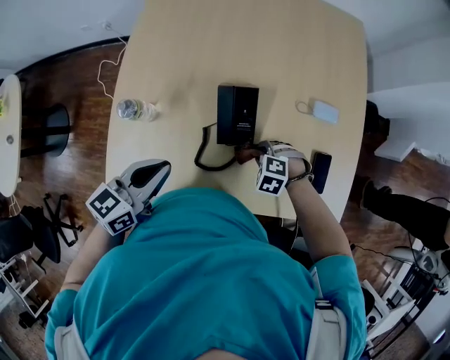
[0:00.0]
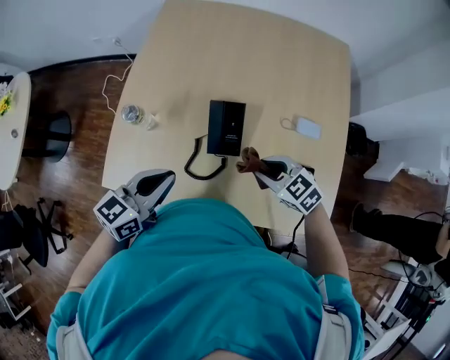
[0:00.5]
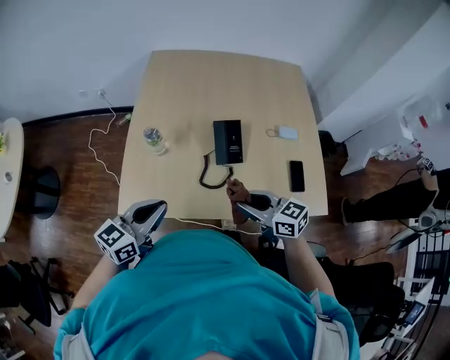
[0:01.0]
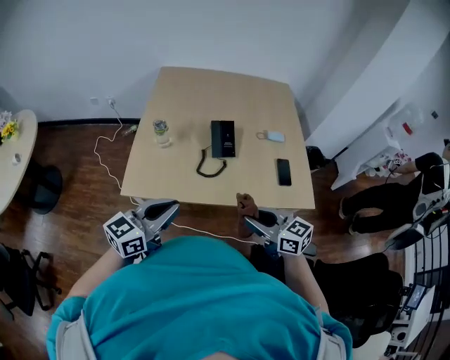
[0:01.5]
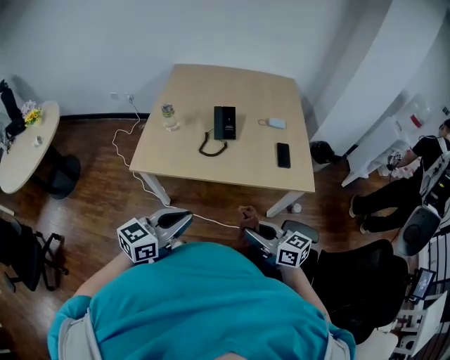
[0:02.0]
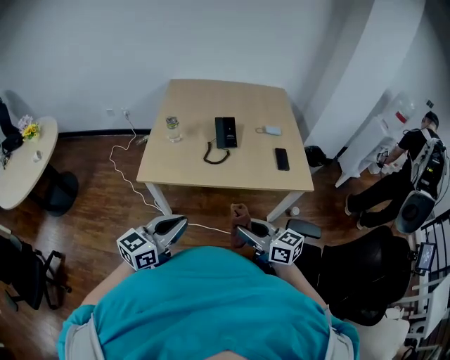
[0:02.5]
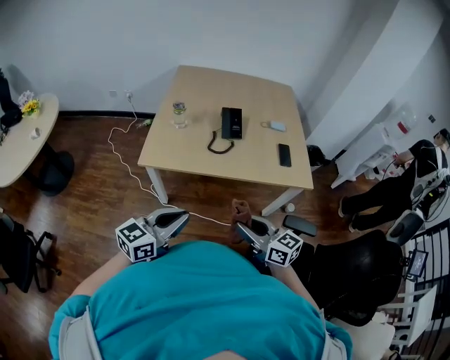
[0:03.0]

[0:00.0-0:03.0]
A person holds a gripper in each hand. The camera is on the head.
0:00.0 to 0:01.5: The right gripper moves some 40 cm, and tilts its fingers some 60 degrees upward; the left gripper changes place by approximately 30 cm, and turns by roughly 20 degrees.
0:01.5 to 0:03.0: Both grippers travel together backward, about 20 cm.

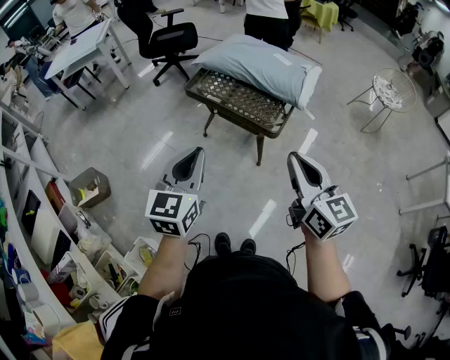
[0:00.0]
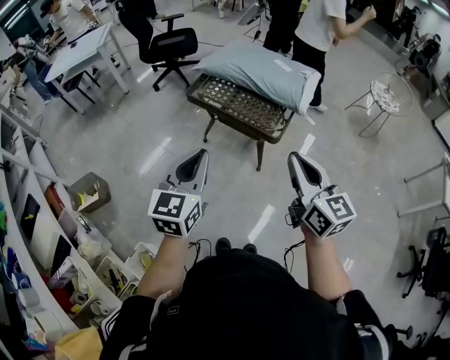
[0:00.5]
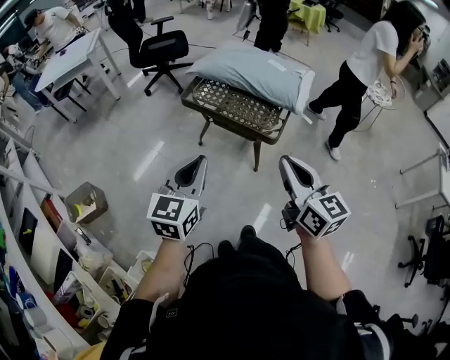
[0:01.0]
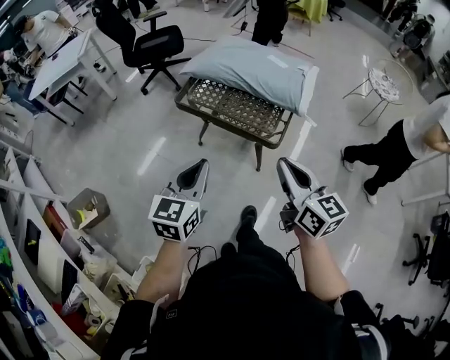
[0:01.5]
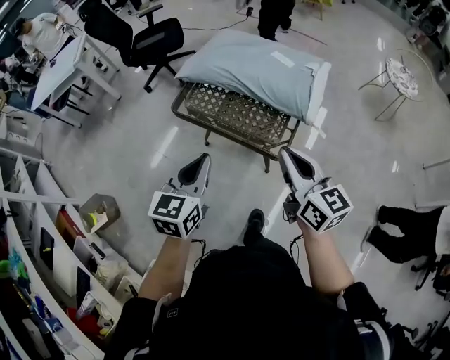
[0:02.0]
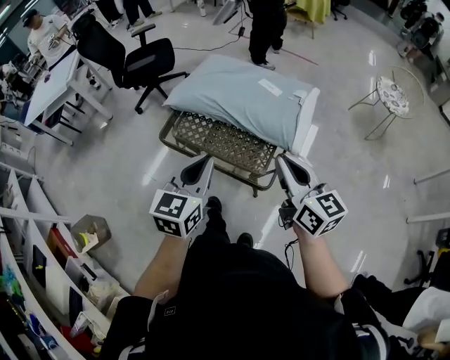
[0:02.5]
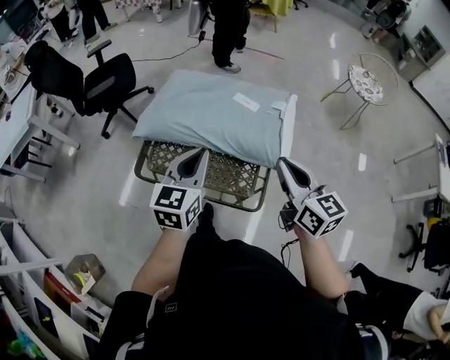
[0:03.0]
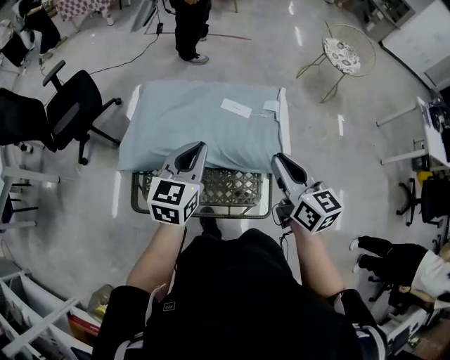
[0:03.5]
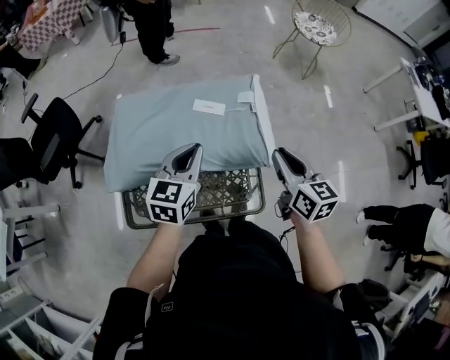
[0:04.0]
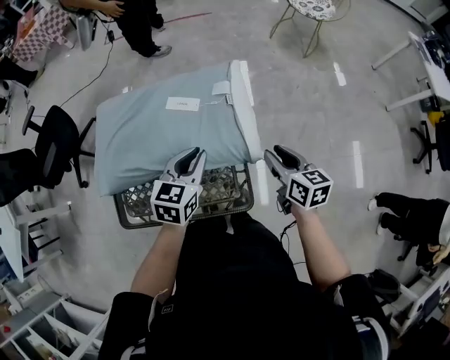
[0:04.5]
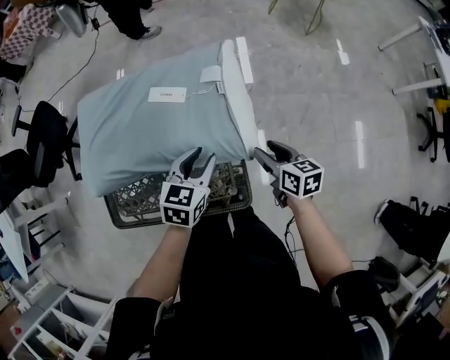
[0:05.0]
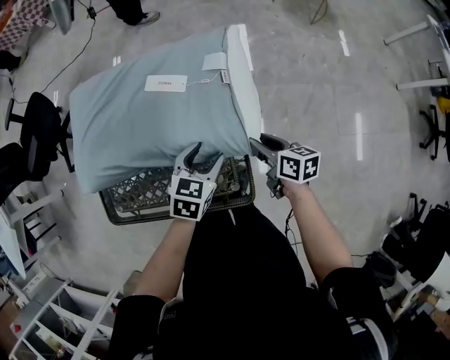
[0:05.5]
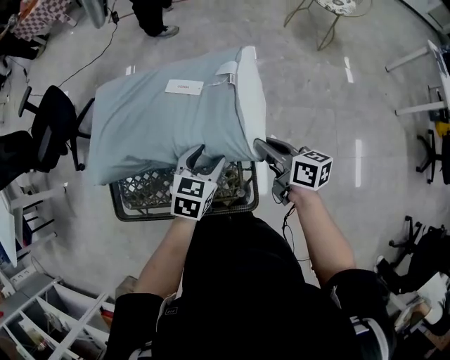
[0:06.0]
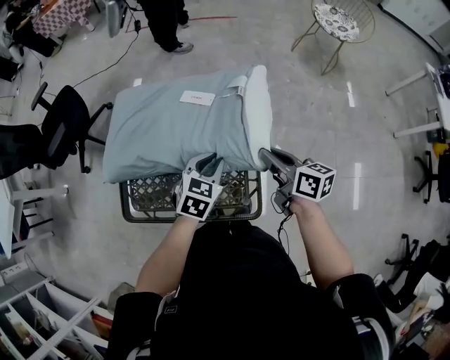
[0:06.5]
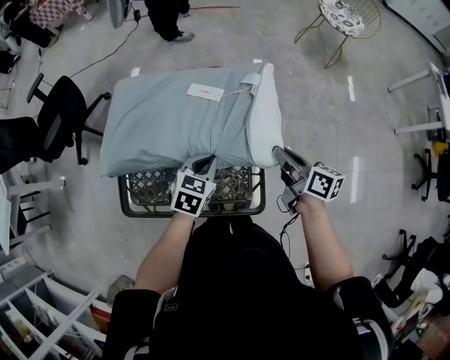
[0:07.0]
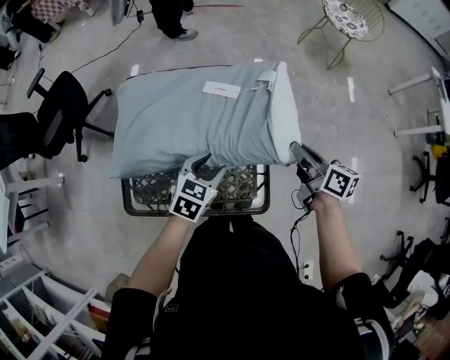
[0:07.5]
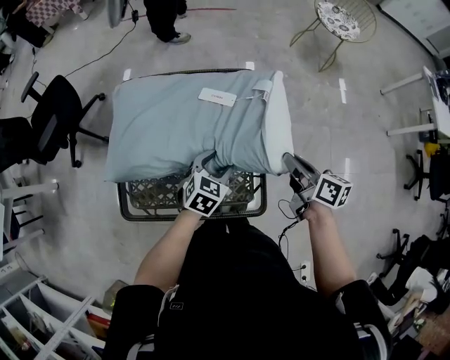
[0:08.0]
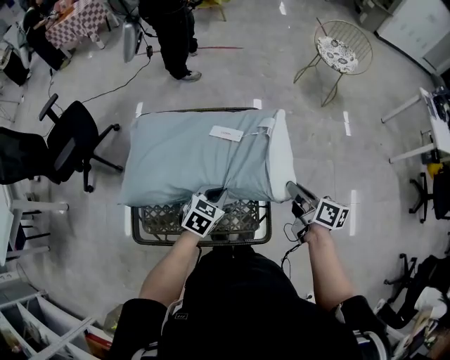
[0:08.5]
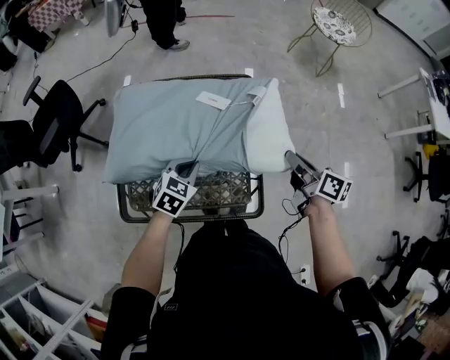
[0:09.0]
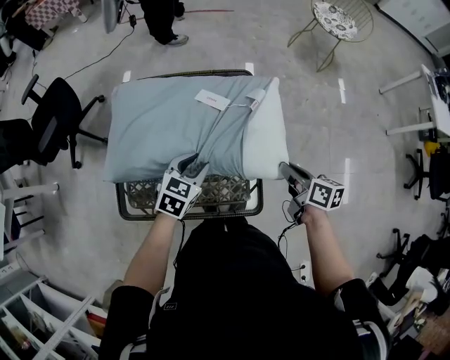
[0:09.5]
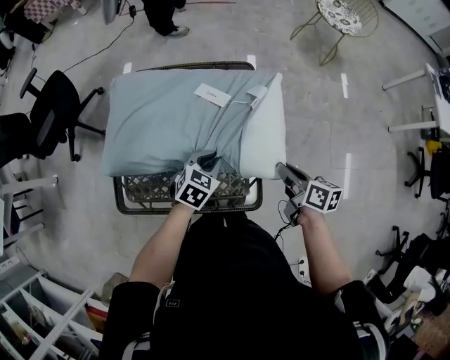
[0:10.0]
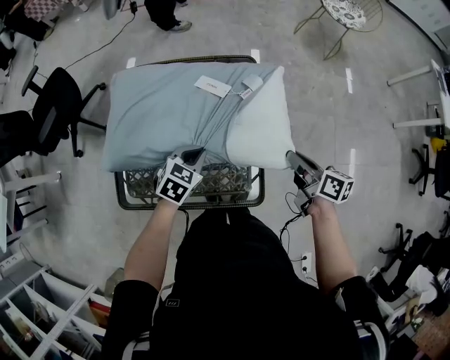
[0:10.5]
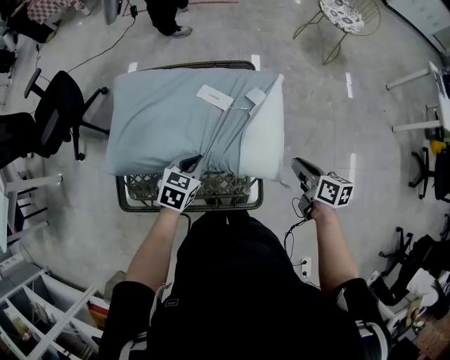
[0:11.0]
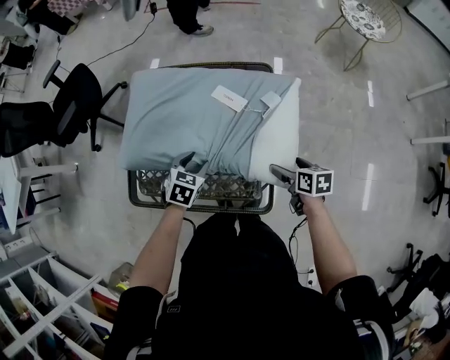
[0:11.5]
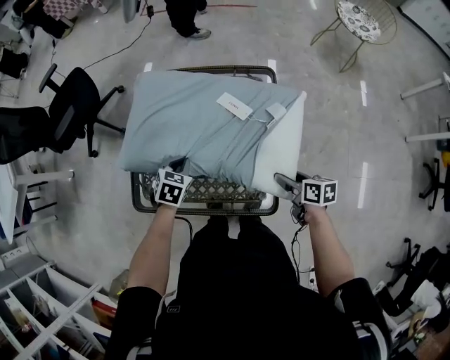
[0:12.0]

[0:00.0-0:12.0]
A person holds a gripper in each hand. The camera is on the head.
0:00.0 to 0:02.0: The two grippers go approximately 25 cm forward.
0:02.0 to 0:04.0: The left gripper moves approximately 40 cm, and rotates about 40 degrees, while the right gripper ends up roughly 30 cm from where it was, and turns by some 40 degrees.
0:04.0 to 0:06.0: The left gripper moves downward and to the right, about 20 cm, changes its angle by some 20 degrees, and opens. Meanwhile the right gripper is displaced downward by about 15 cm, and rotates some 30 degrees.
0:06.0 to 0:08.0: The left gripper closes, then reopens.
0:08.0 to 0:10.0: The right gripper shifts by about 5 cm. The left gripper travels to the left and back again, roughly 5 cm each way, and closes its fingers.
0:10.0 to 0:12.0: The right gripper moves downward, some 10 cm, and opens up. The left gripper moves to the left, about 15 cm, and opens, then closes once more.

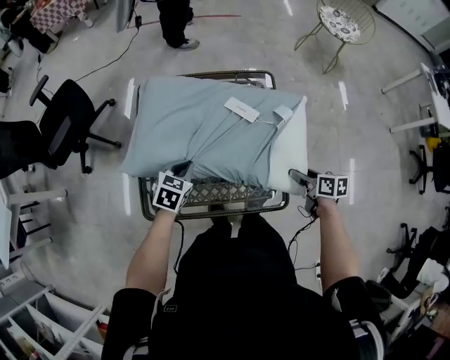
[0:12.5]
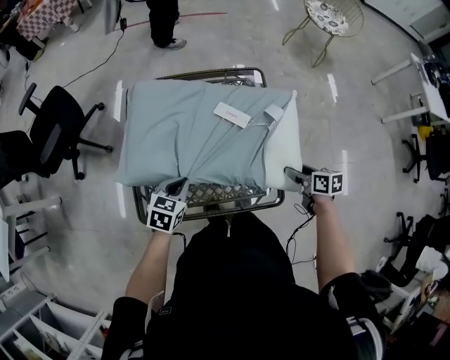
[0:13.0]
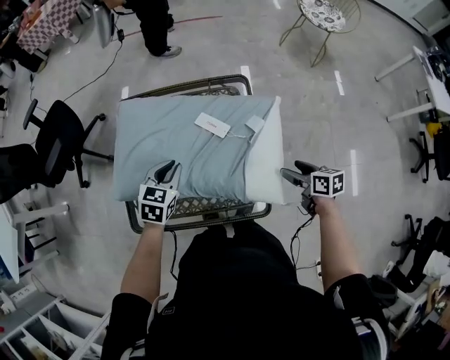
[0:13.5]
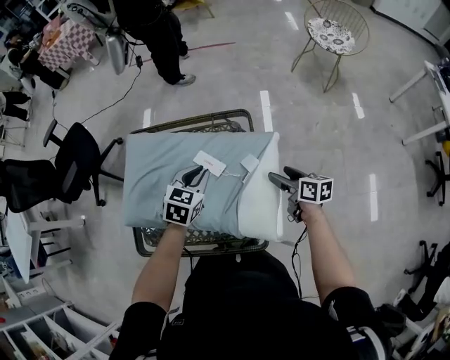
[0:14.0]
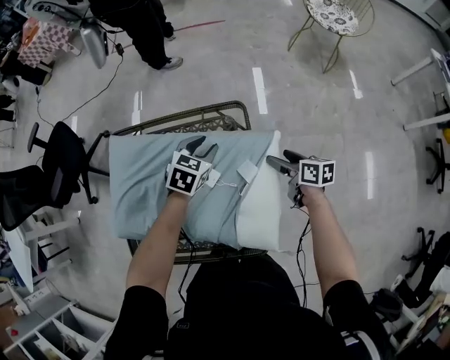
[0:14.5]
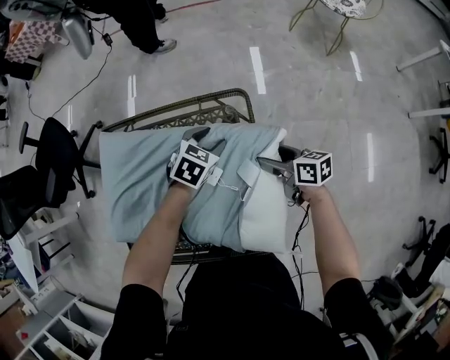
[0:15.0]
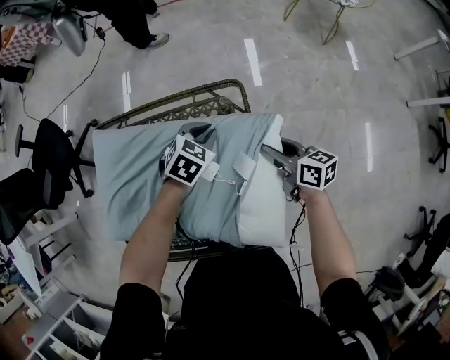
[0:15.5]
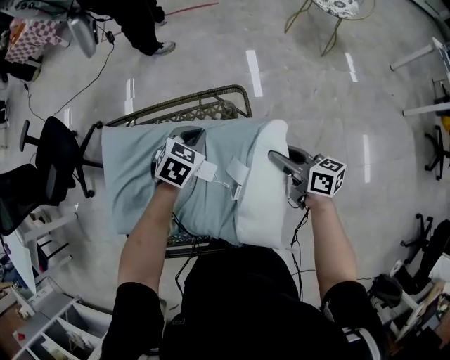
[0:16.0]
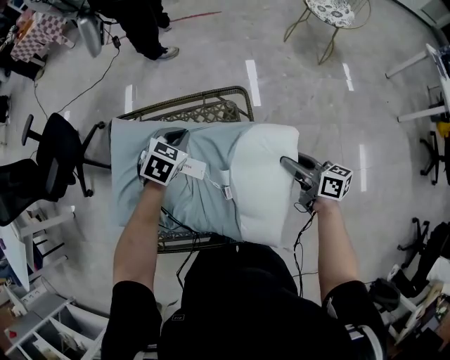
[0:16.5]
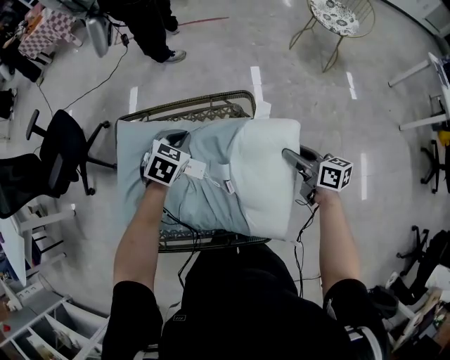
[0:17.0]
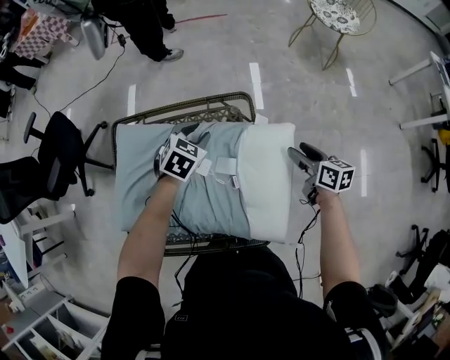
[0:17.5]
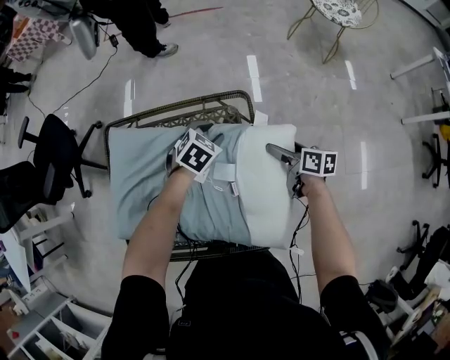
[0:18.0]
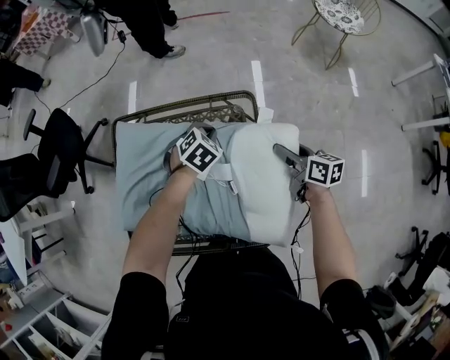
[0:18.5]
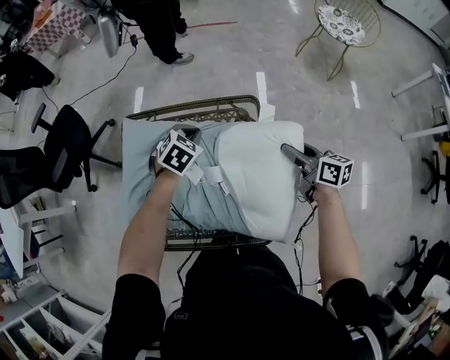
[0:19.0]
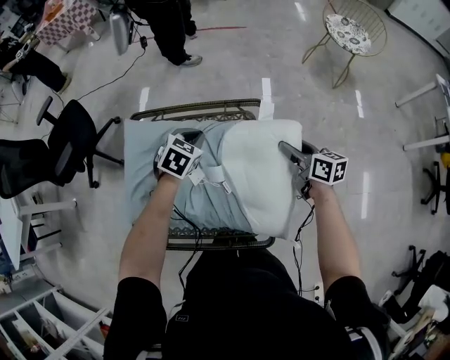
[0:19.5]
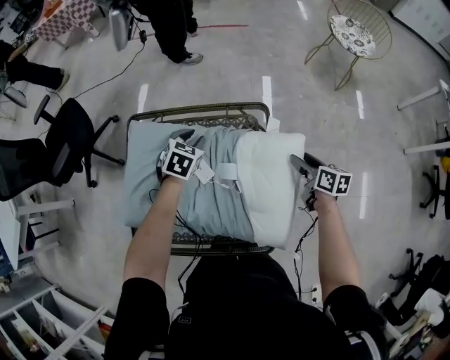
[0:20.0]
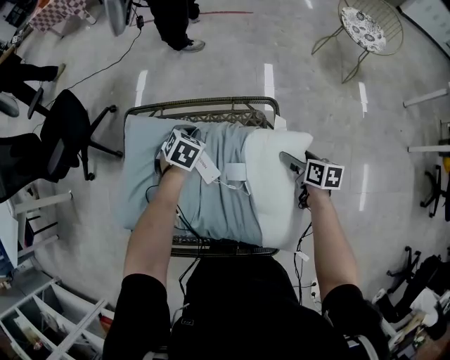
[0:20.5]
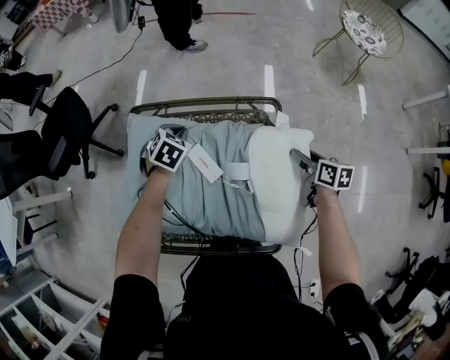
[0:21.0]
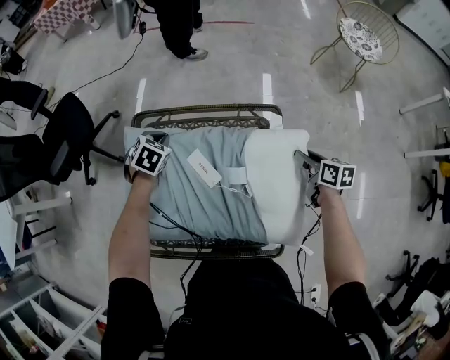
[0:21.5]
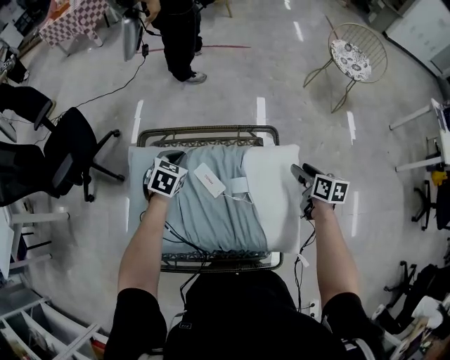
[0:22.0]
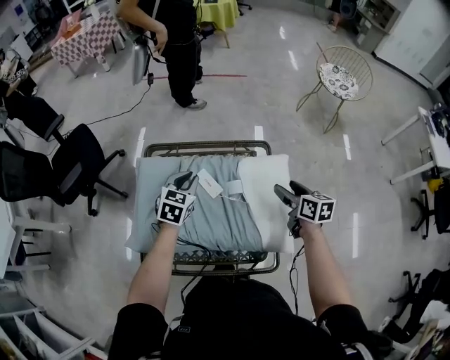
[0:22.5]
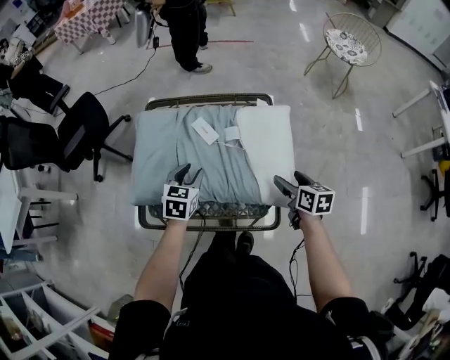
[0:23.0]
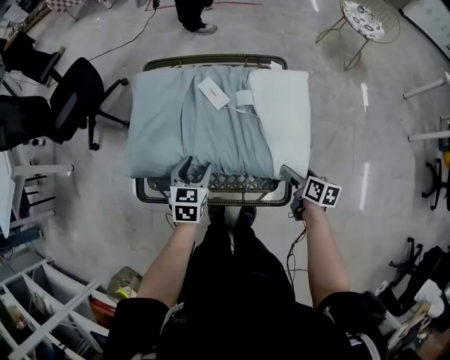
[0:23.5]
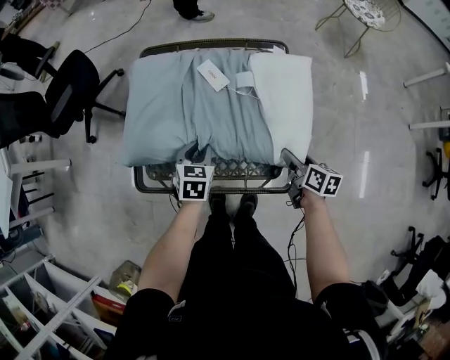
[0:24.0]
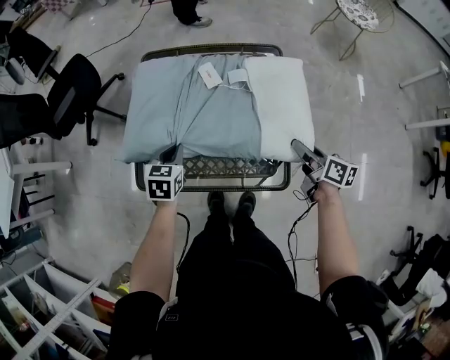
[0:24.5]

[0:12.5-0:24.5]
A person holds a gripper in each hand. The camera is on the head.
0:12.5 to 0:14.5: The left gripper moves to the right and forward, about 35 cm, and opens its fingers. The right gripper is displaced forward by approximately 20 cm.
0:14.5 to 0:16.5: The right gripper goes about 10 cm upward and backward, and closes its fingers; the left gripper is displaced to the left by approximately 10 cm, and closes its fingers.
0:16.5 to 0:18.5: The right gripper moves forward, some 5 cm, and opens, then closes again. The left gripper travels to the right and downward by approximately 10 cm, and opens, then closes once more.
0:18.5 to 0:20.5: The right gripper shifts approximately 5 cm downward, and opens its fingers. The left gripper moves to the left, roughly 15 cm.
0:20.5 to 0:22.5: The left gripper is displaced upward and backward by some 15 cm, and changes its angle by about 30 degrees; the right gripper travels upward by some 15 cm, and closes, then opens again.
0:22.5 to 0:24.5: The right gripper moves backward, about 15 cm. The left gripper shifts roughly 20 cm backward and to the left, and opens and closes again.
